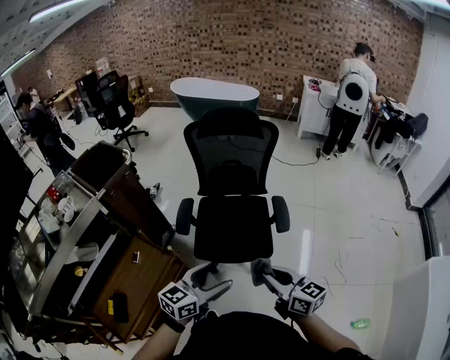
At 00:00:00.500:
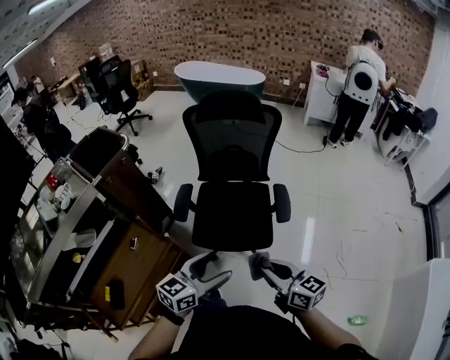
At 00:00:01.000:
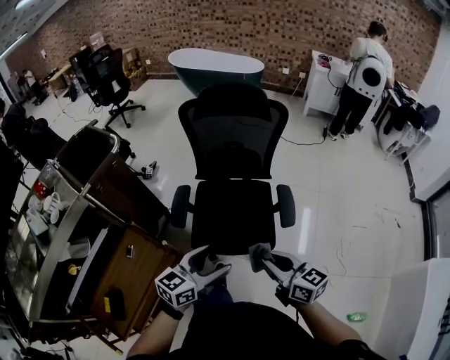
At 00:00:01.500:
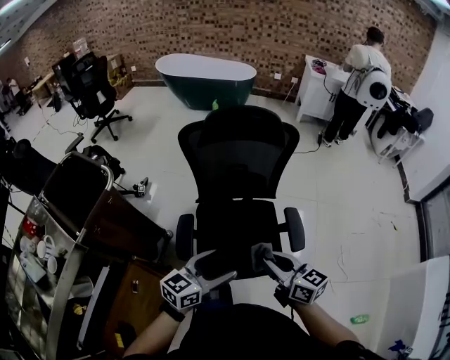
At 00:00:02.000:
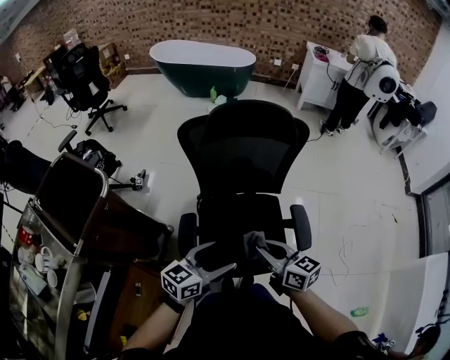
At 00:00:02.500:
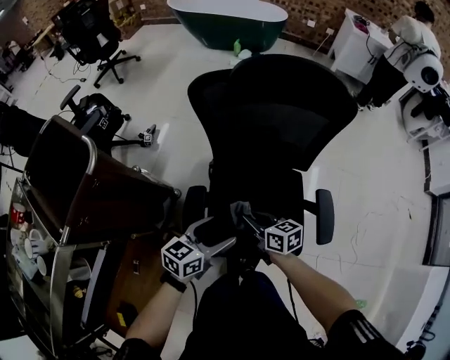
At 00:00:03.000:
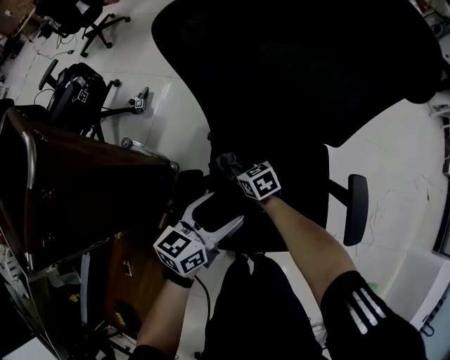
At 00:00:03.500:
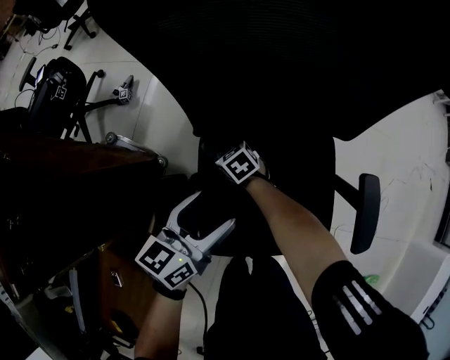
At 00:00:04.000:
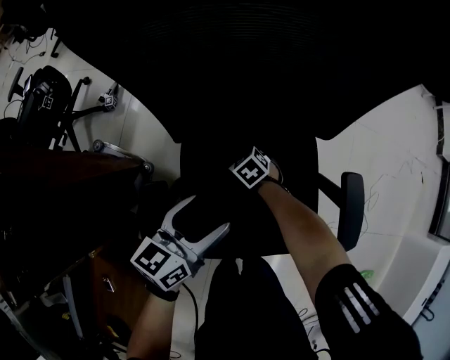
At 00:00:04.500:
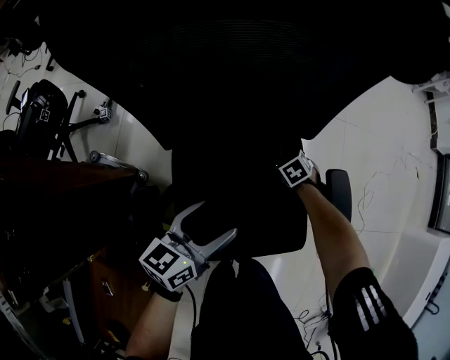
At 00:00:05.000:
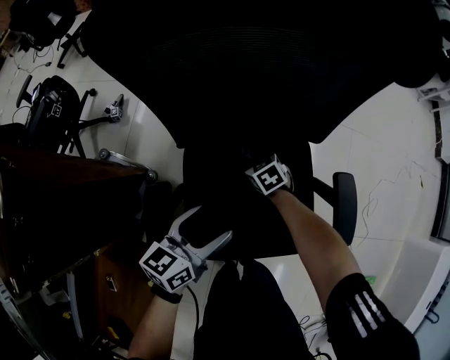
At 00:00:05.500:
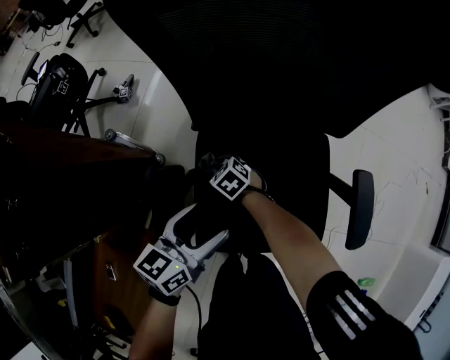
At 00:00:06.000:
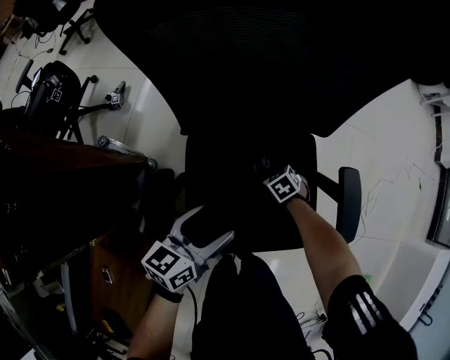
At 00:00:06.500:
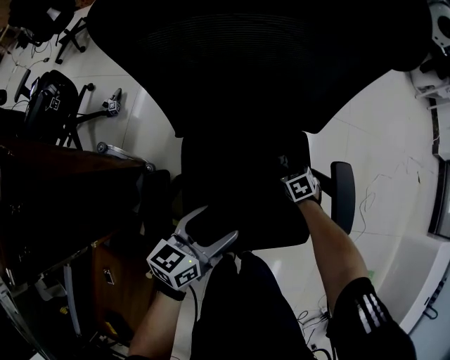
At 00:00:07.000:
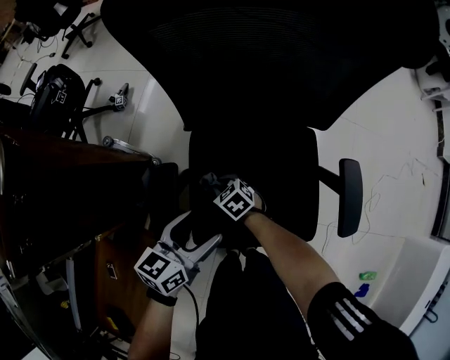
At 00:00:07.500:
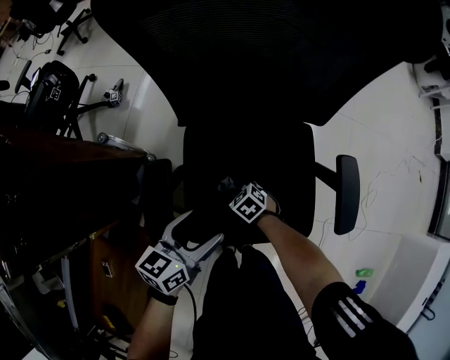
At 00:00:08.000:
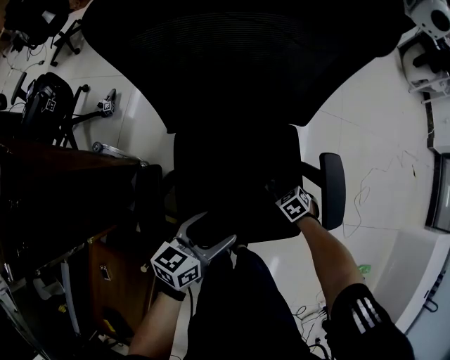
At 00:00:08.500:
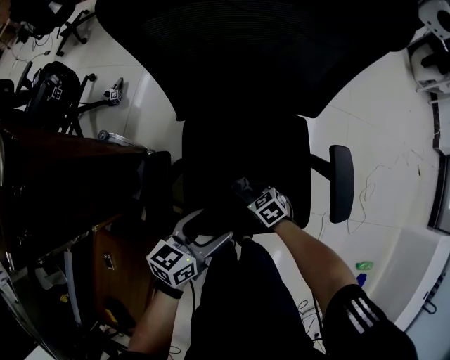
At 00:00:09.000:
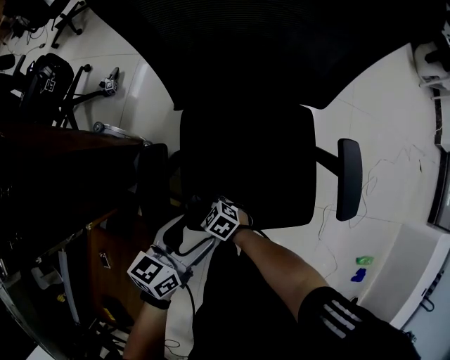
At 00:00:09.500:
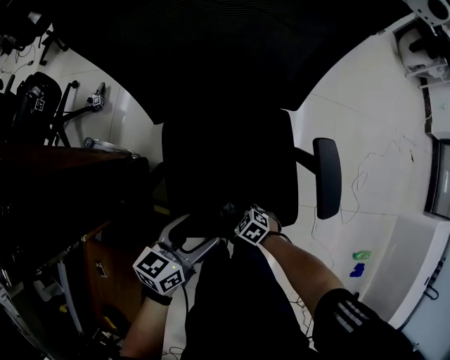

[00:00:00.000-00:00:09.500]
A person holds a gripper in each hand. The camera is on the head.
00:00:00.000 to 00:00:02.000: Both grippers move forward, some 30 cm.
00:00:02.000 to 00:00:04.000: The left gripper is displaced downward and forward by roughly 30 cm, while the right gripper moves downward and forward, about 60 cm, and points its fingers some 50 degrees further downward.
00:00:04.000 to 00:00:05.500: Both grippers move backward, about 5 cm. The right gripper moves some 20 cm to the right and comes back.
00:00:05.500 to 00:00:07.500: The left gripper changes place by roughly 5 cm.
00:00:07.500 to 00:00:09.500: The left gripper changes place by about 5 cm.

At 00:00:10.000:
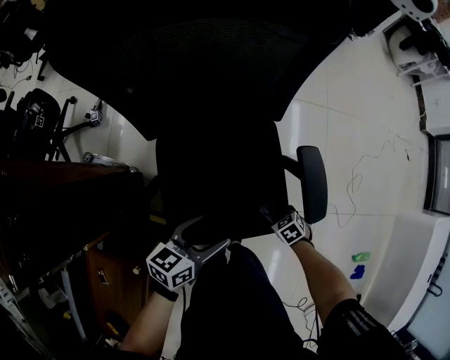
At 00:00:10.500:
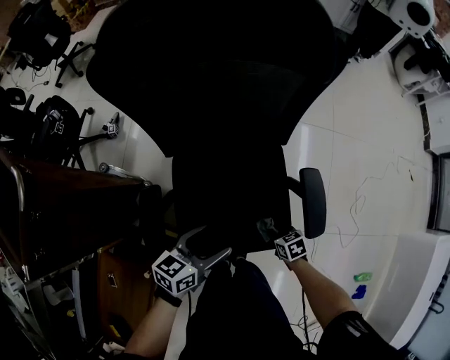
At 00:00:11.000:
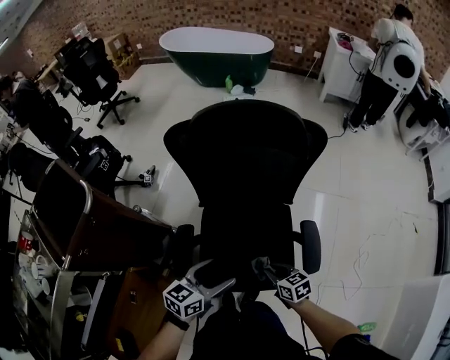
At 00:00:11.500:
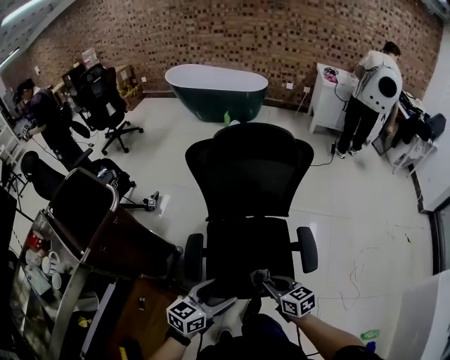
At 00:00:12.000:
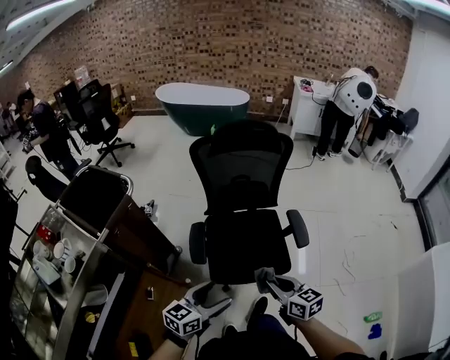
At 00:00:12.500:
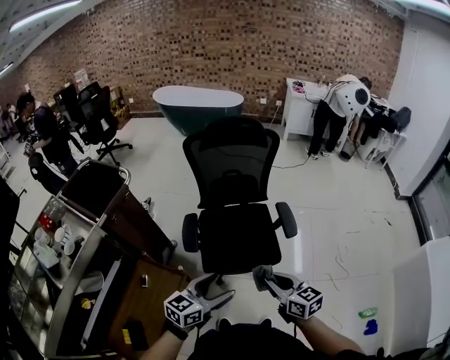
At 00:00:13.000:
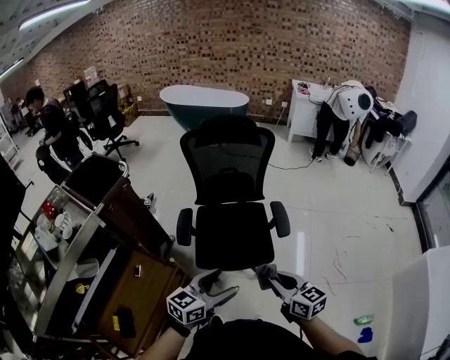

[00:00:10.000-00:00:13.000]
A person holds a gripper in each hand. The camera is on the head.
00:00:10.000 to 00:00:11.500: The left gripper heads upward and backward, covering approximately 25 cm; the right gripper is displaced upward by some 40 cm, and tips its fingers upward by approximately 40 degrees.
00:00:11.500 to 00:00:13.000: The right gripper goes some 30 cm backward, upward and to the right, while the left gripper shifts roughly 25 cm backward and to the right.

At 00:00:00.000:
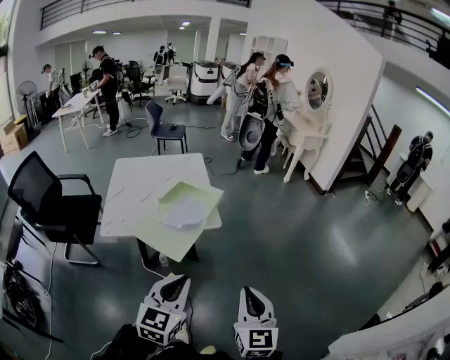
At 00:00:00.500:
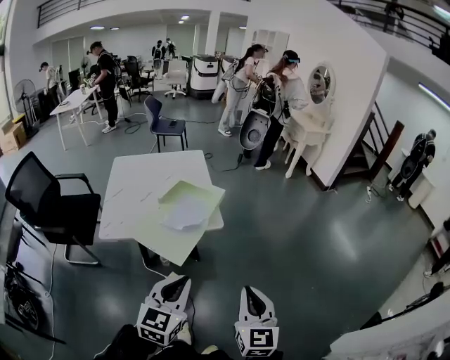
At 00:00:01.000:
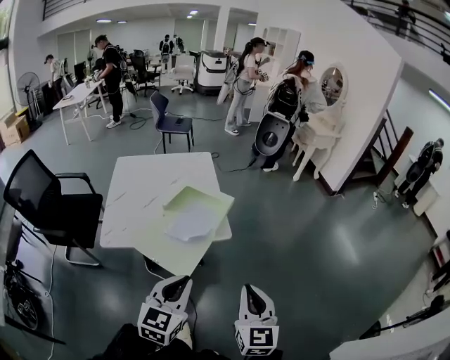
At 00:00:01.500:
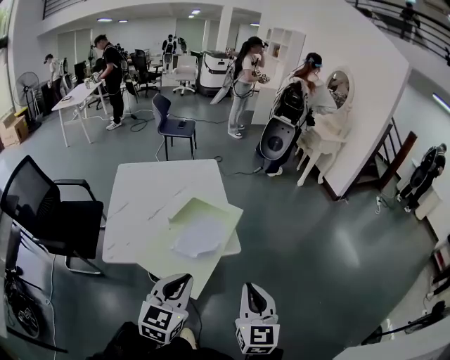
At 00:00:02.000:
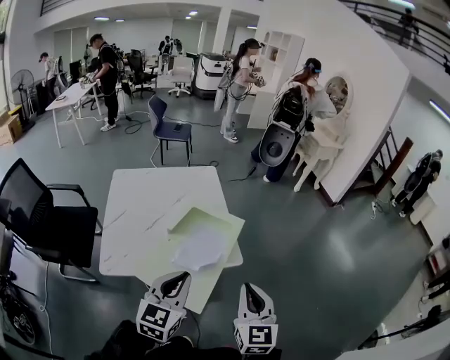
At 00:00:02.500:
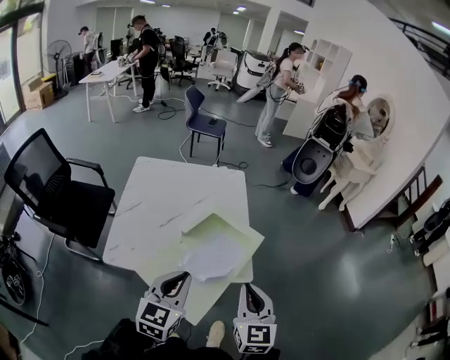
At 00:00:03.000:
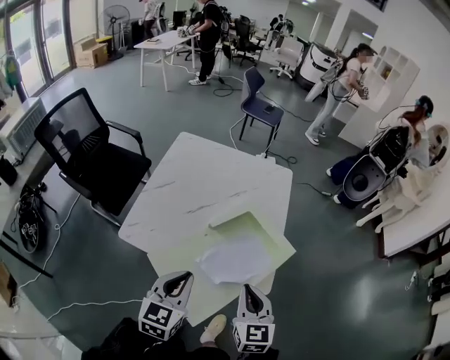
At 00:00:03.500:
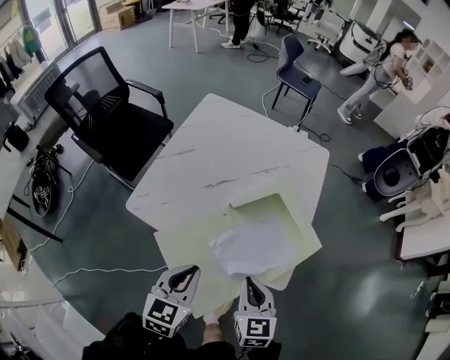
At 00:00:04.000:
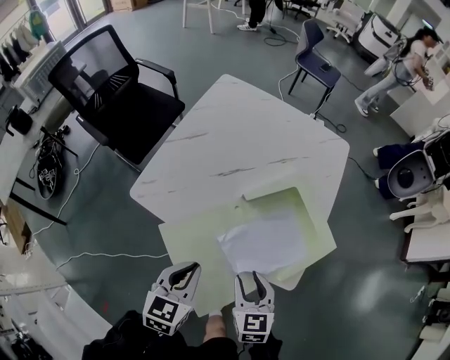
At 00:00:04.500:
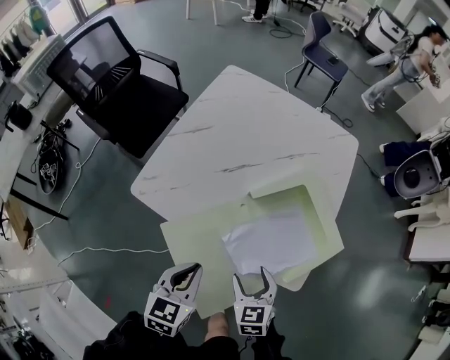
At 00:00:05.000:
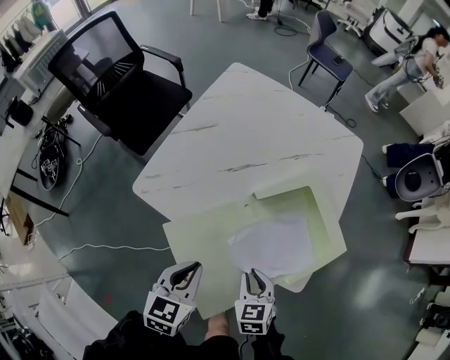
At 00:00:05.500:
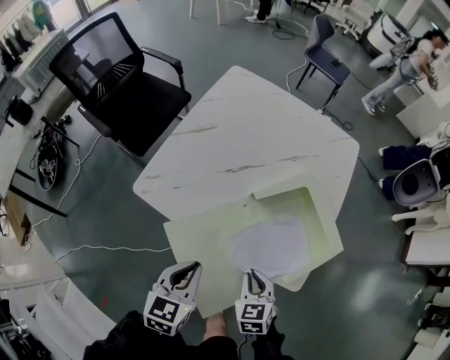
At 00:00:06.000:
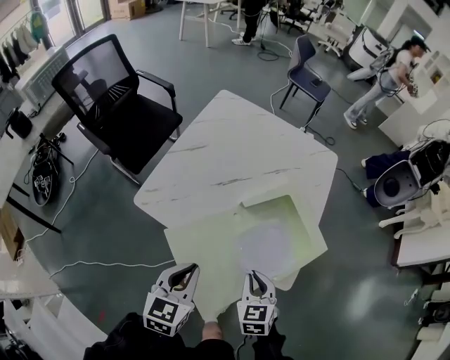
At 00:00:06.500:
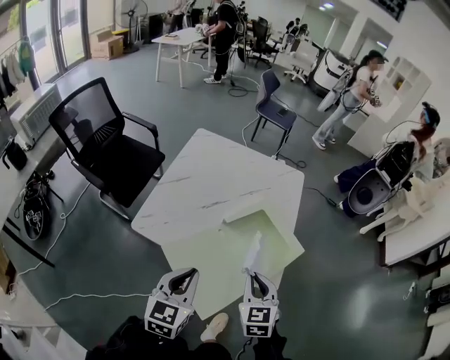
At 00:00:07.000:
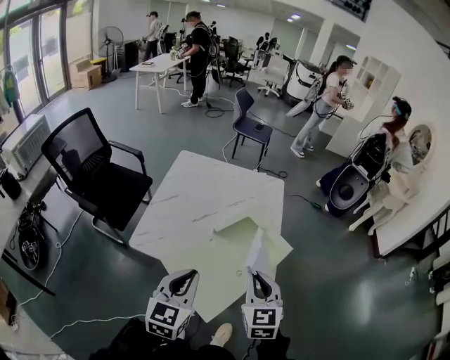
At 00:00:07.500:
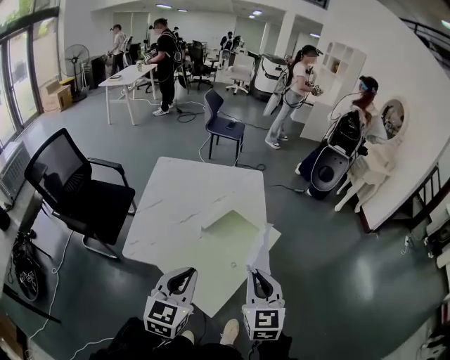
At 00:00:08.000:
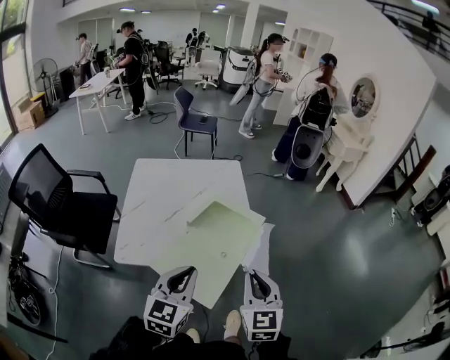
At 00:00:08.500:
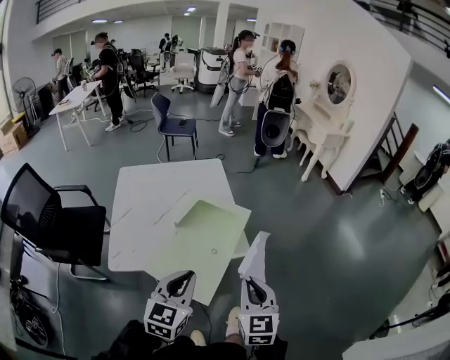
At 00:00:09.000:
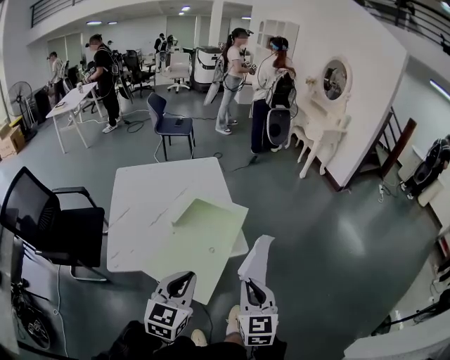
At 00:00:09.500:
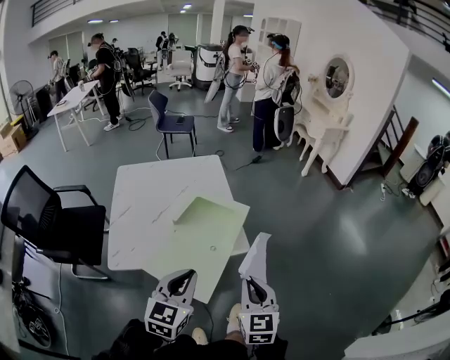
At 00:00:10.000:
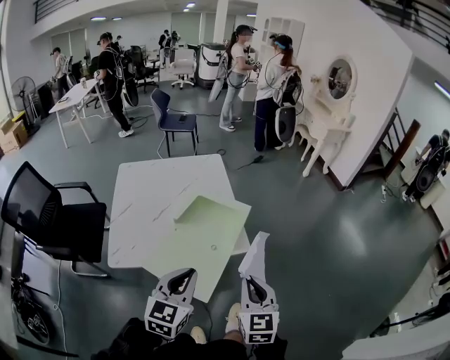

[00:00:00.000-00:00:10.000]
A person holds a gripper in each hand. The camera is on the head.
00:00:00.000 to 00:00:02.000: Both grippers move forward and to the left, roughly 30 cm.
00:00:02.000 to 00:00:04.000: Both grippers travel together downward, roughly 25 cm. The right gripper rotates about 50 degrees, and opens its fingers; the left gripper swivels some 40 degrees.
00:00:04.000 to 00:00:06.000: The right gripper goes downward and returns, approximately 5 cm each way, and closes its fingers, while the left gripper shifts by some 5 cm.
00:00:06.000 to 00:00:08.000: Both grippers travel together upward, roughly 20 cm. The right gripper swivels about 40 degrees, while the left gripper rotates some 40 degrees.
00:00:08.000 to 00:00:10.000: The right gripper shifts by some 5 cm.

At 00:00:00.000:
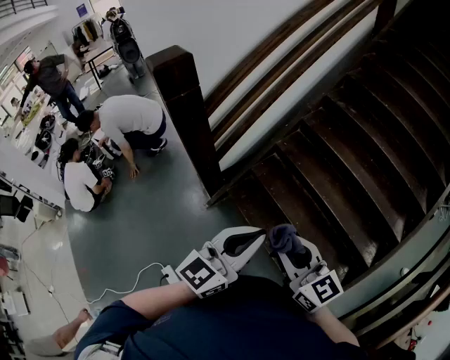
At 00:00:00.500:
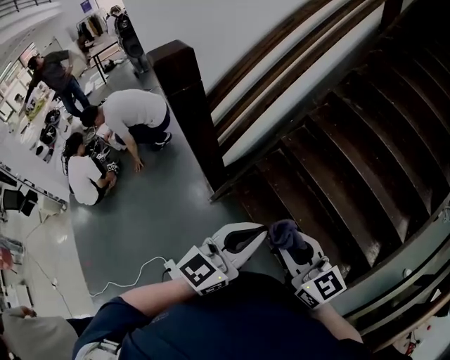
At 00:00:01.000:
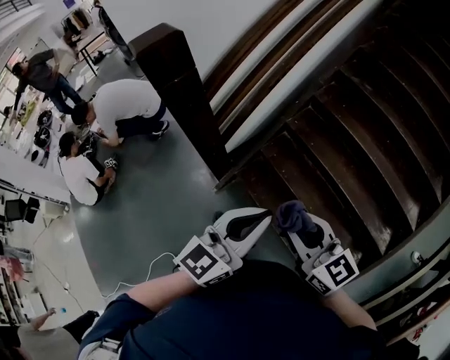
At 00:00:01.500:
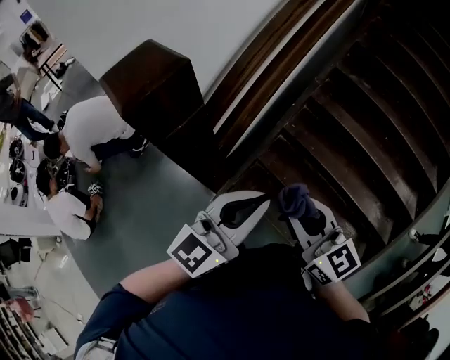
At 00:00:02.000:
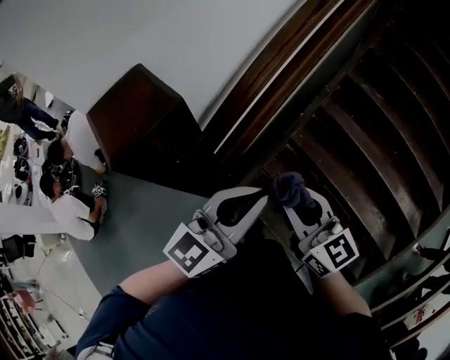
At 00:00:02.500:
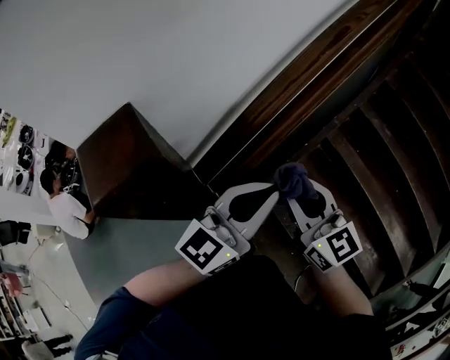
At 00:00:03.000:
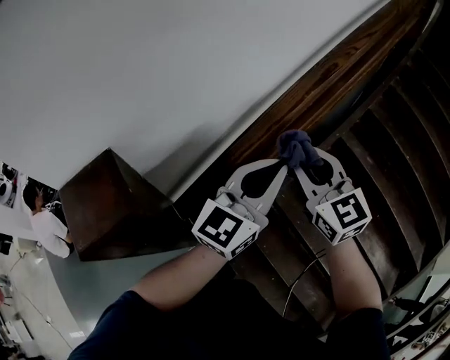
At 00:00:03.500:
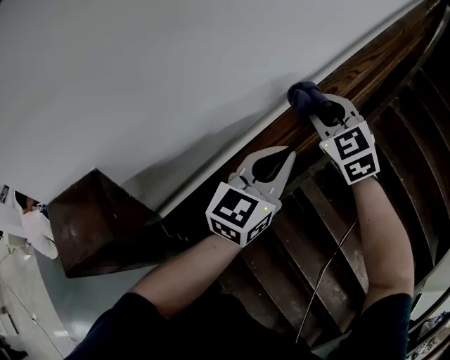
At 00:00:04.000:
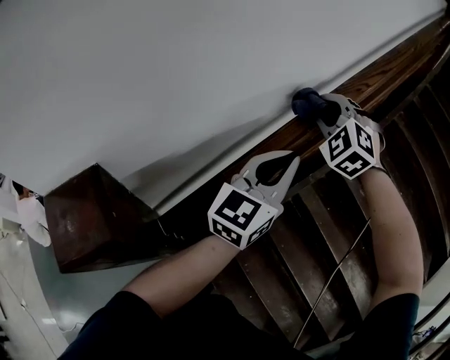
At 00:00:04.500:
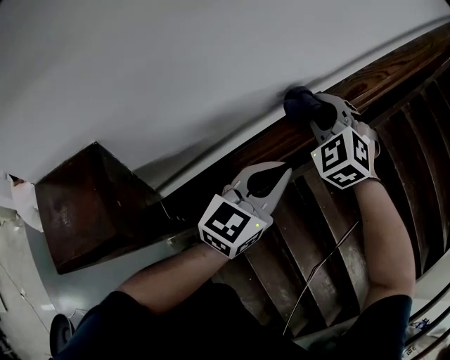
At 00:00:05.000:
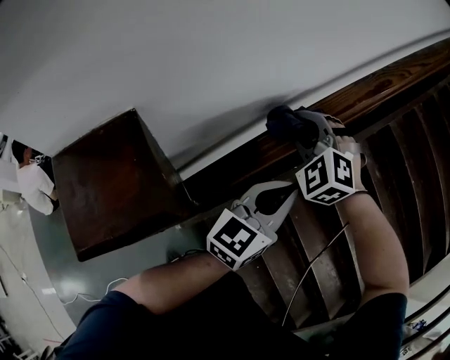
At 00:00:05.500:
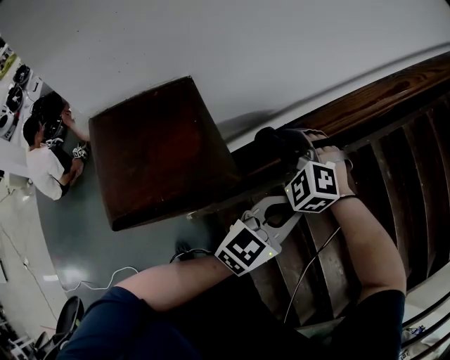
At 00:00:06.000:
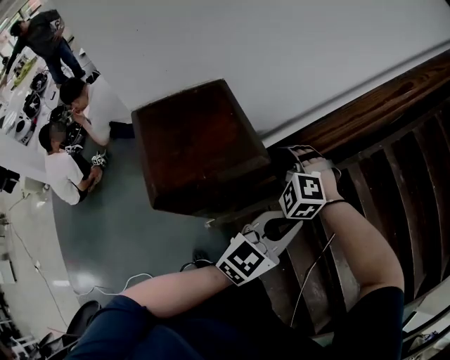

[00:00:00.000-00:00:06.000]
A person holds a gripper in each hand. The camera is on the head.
00:00:00.000 to 00:00:02.000: Both grippers are carried forward and to the left, about 40 cm.
00:00:02.000 to 00:00:04.000: The grippers both shift forward by approximately 40 cm. The right gripper twists roughly 80 degrees counterclockwise, seen from behind.
00:00:04.000 to 00:00:06.000: The right gripper moves backward, downward and to the left, roughly 40 cm, and rotates some 30 degrees, while the left gripper travels backward and downward by approximately 30 cm.